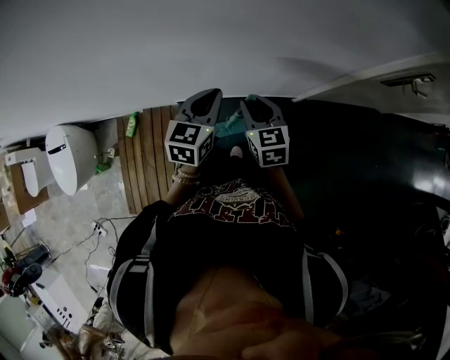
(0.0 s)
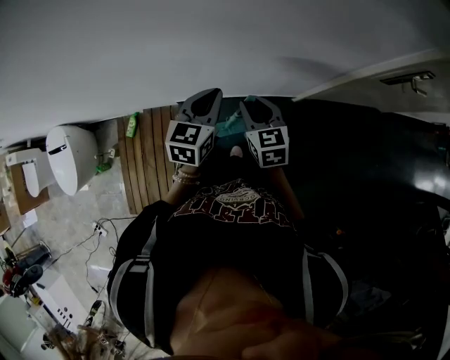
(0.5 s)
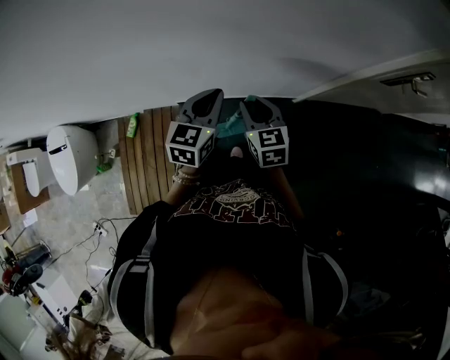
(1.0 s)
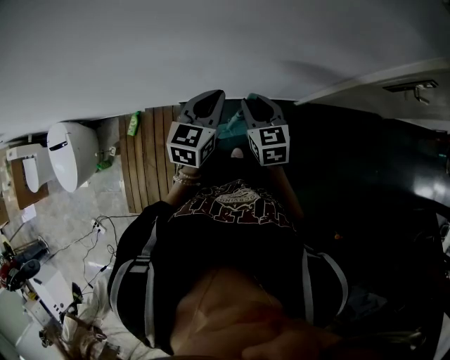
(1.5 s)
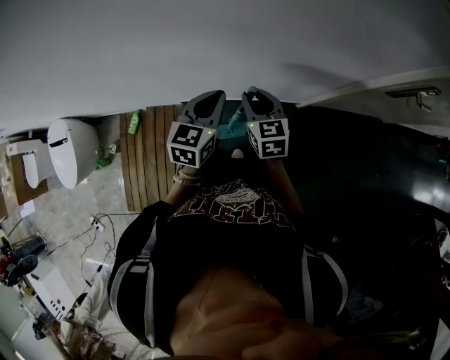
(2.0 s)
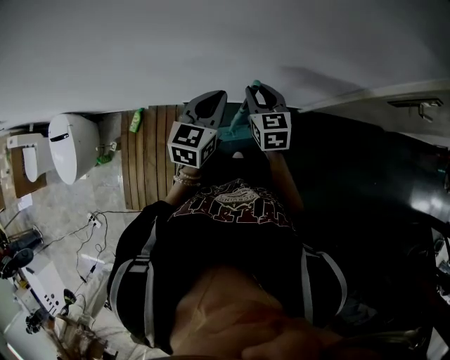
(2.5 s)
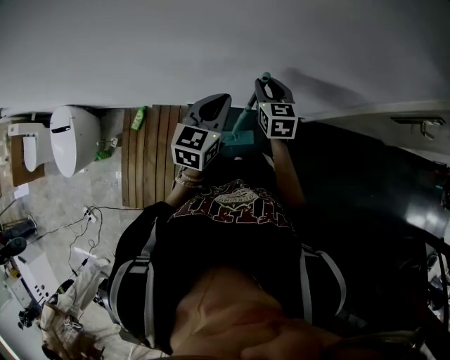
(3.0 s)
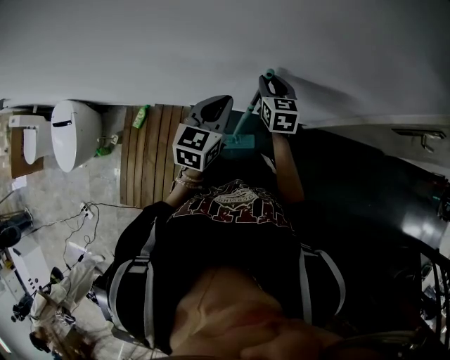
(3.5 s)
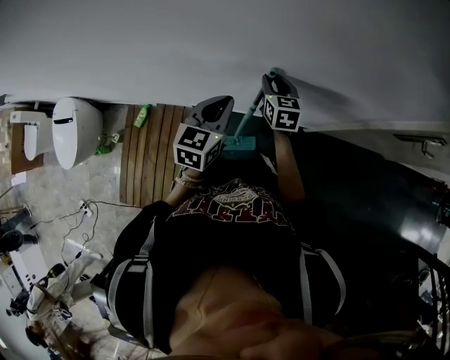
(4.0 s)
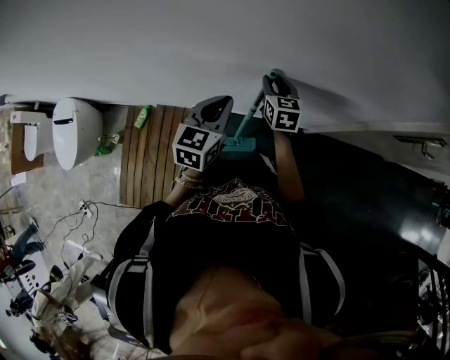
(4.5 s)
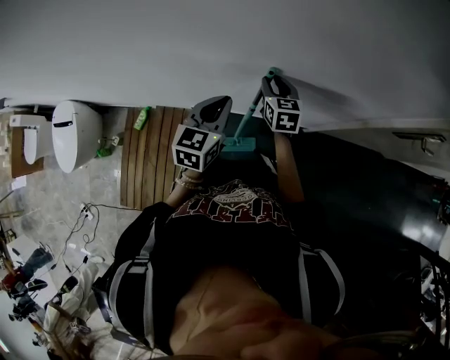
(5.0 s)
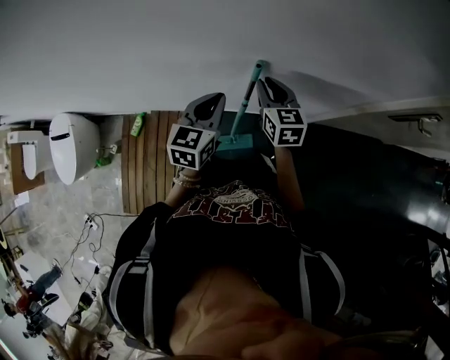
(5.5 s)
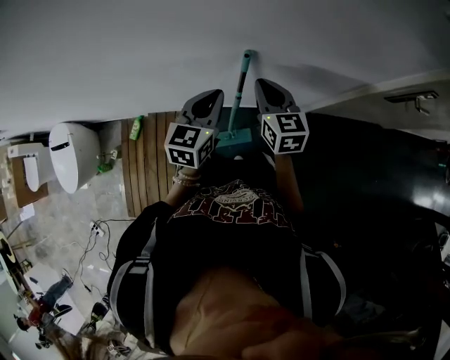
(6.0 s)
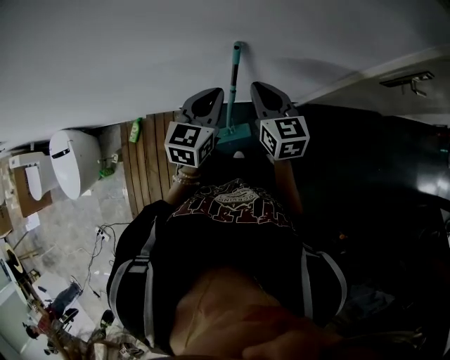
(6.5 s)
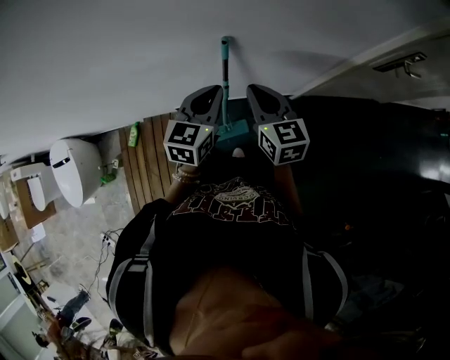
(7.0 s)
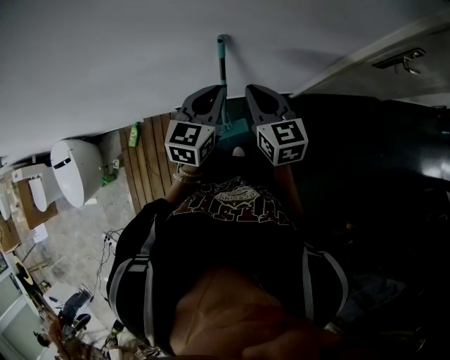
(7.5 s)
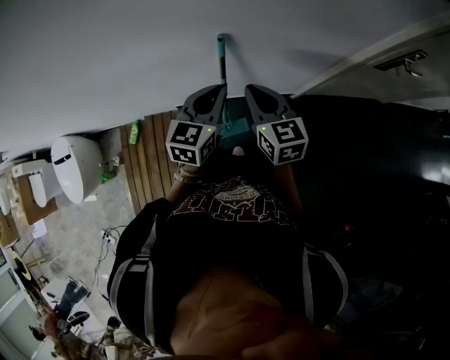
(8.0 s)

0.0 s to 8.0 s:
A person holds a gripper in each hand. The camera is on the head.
0.0 to 2.0 s: There are only small adjustments of the grippers.
2.0 to 4.0 s: The left gripper moves roughly 5 cm; the right gripper is displaced forward by about 15 cm.
4.0 to 6.0 s: The right gripper goes roughly 15 cm backward and upward, and closes.
6.0 to 8.0 s: The left gripper moves to the right, approximately 5 cm; the right gripper goes about 10 cm backward.

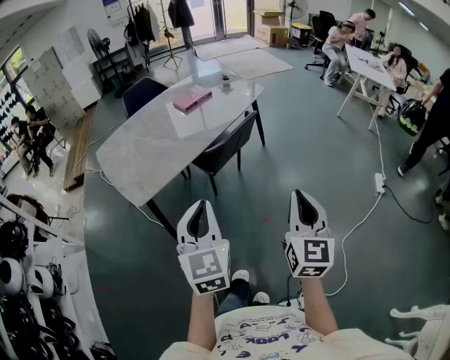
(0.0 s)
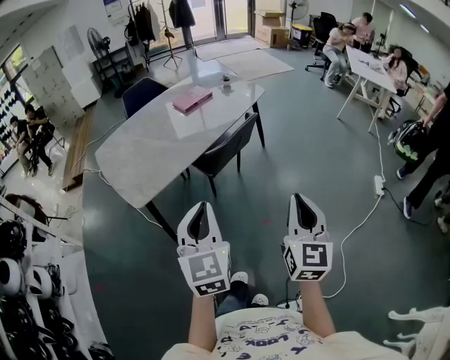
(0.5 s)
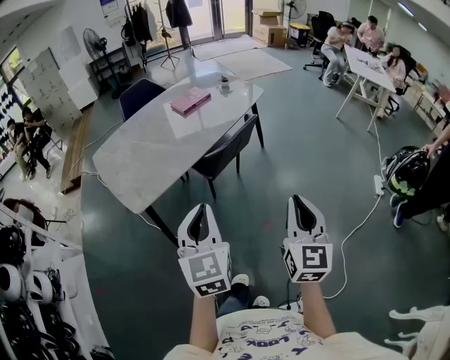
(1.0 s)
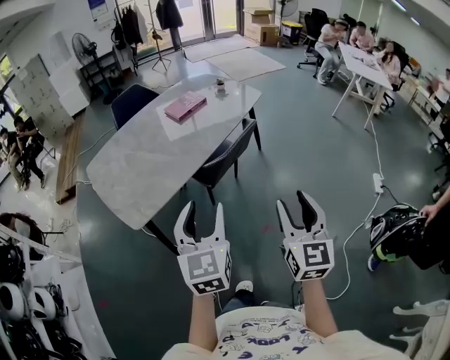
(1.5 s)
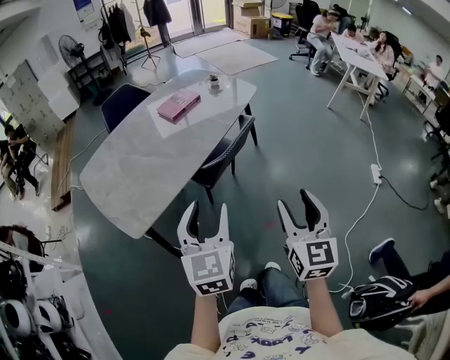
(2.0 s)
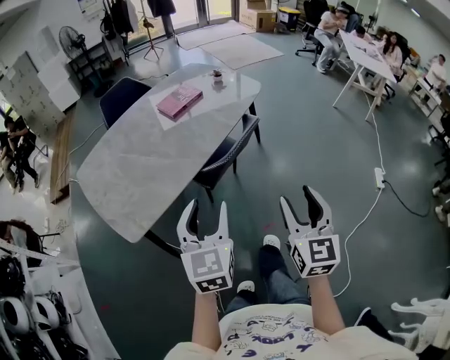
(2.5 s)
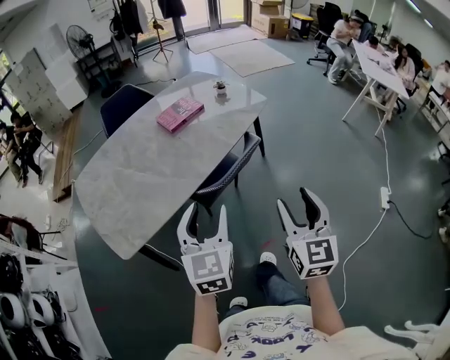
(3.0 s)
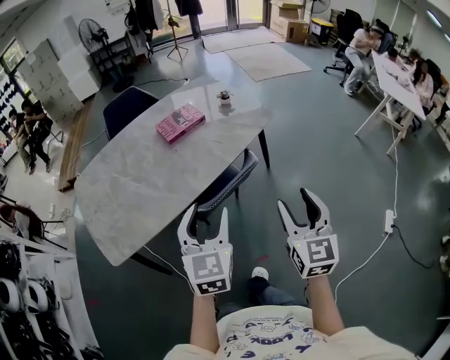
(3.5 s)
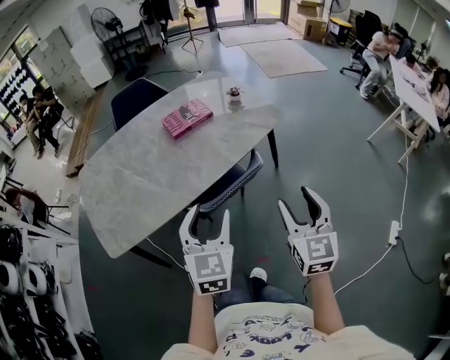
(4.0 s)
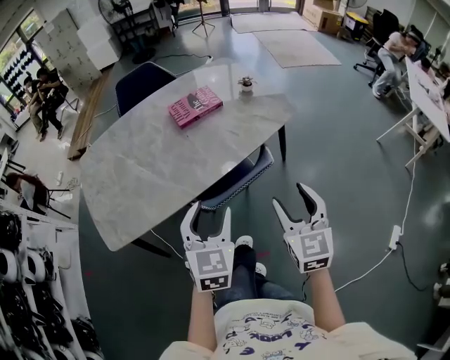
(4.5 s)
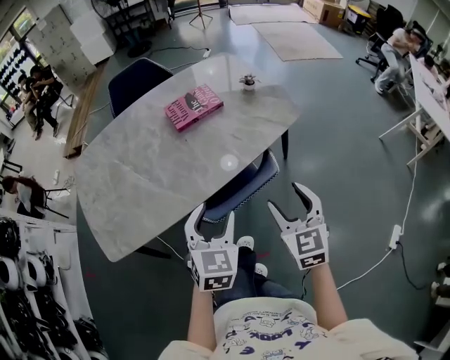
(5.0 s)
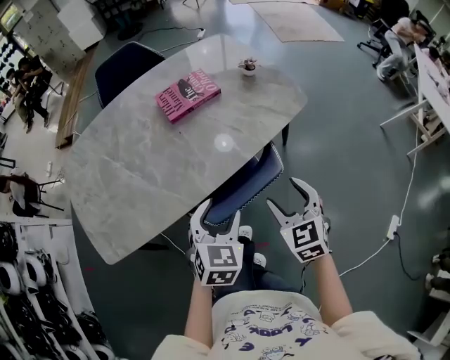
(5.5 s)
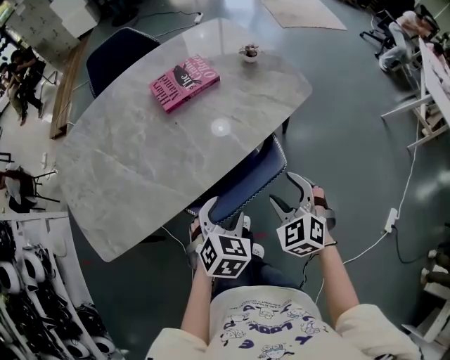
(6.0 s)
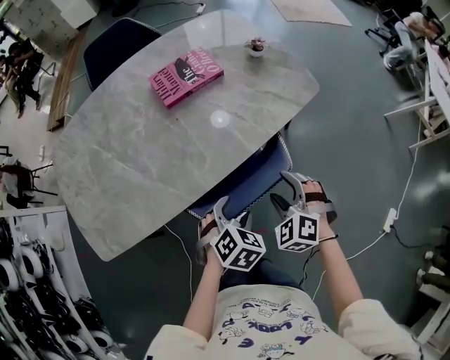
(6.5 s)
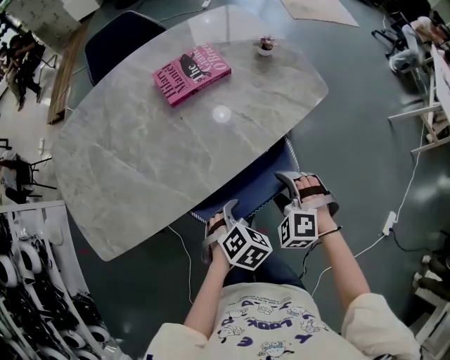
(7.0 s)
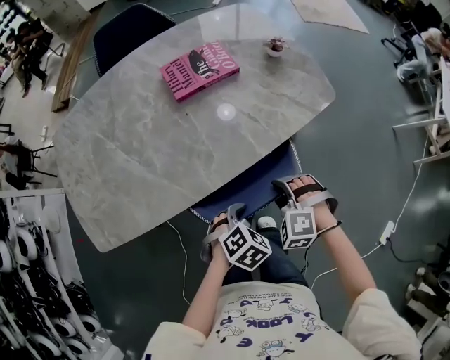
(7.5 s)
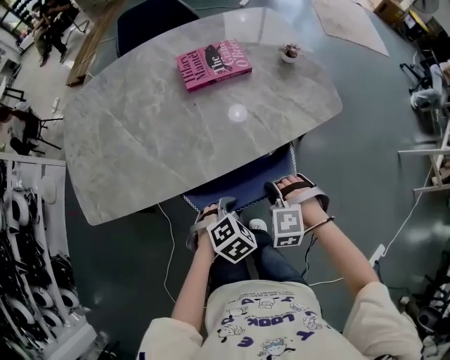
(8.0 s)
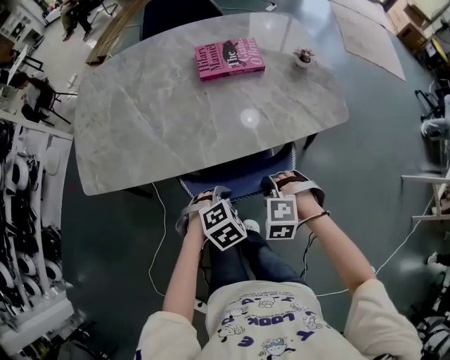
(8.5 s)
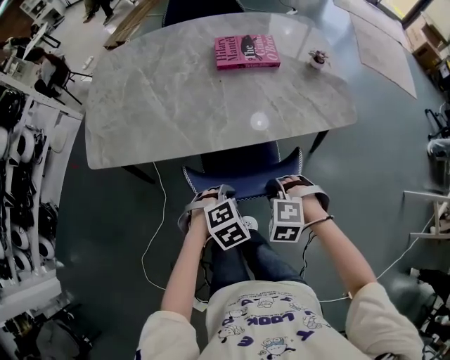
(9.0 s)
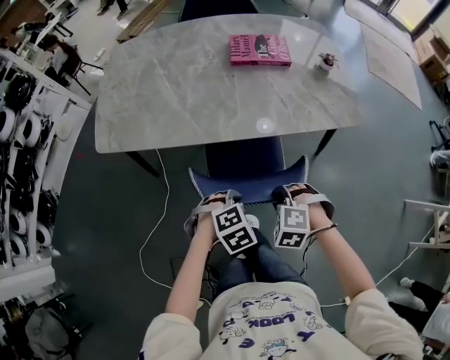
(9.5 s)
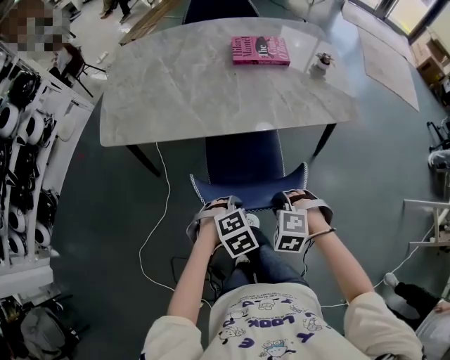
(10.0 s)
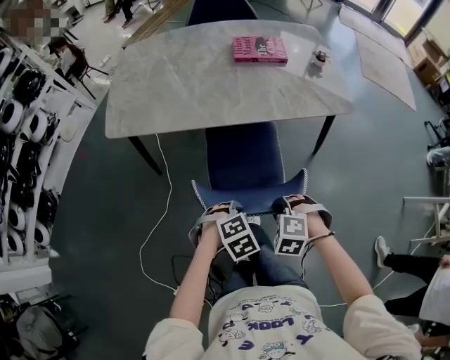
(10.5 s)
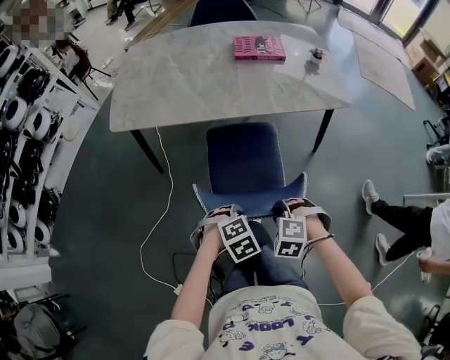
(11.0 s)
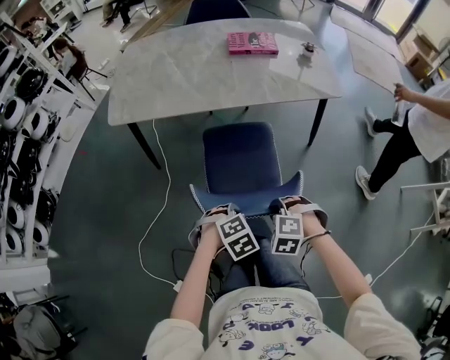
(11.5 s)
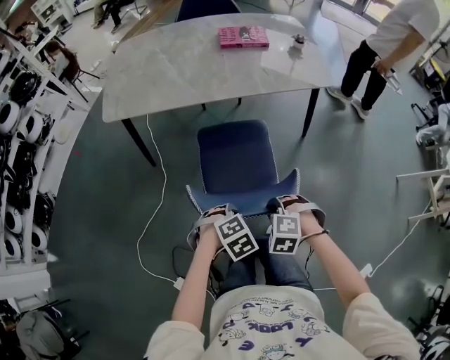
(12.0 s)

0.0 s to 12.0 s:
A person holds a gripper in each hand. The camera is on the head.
0.0 to 2.0 s: The left gripper heads forward, covering some 15 cm, and opens its fingers. Meanwhile the right gripper heads forward and to the left, covering approximately 15 cm, and opens.
2.0 to 4.0 s: The grippers both shift forward and to the right by approximately 35 cm. The right gripper changes its angle by about 20 degrees.
4.0 to 6.0 s: Both grippers travel together downward and forward, some 25 cm. The right gripper angles its fingers downward, by some 30 degrees; the left gripper angles its fingers downward, by roughly 30 degrees.
6.0 to 8.0 s: The two grippers go some 10 cm downward. The right gripper rolls counterclockwise, seen from behind, by some 50 degrees, and closes; the left gripper closes.
8.0 to 10.0 s: The two grippers go approximately 15 cm backward.
10.0 to 12.0 s: Both grippers move backward, approximately 20 cm.

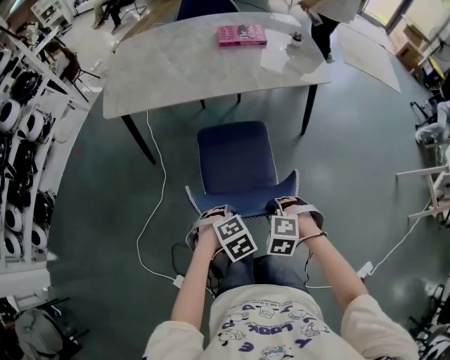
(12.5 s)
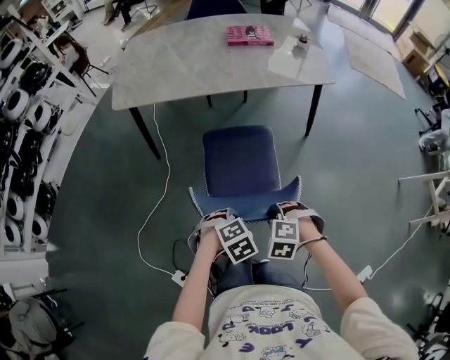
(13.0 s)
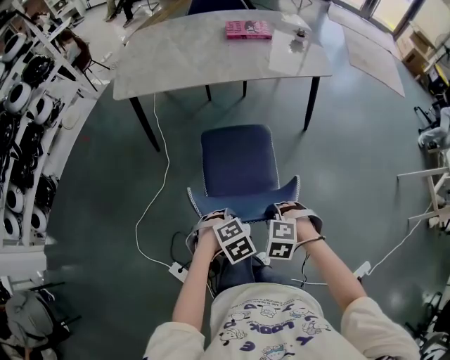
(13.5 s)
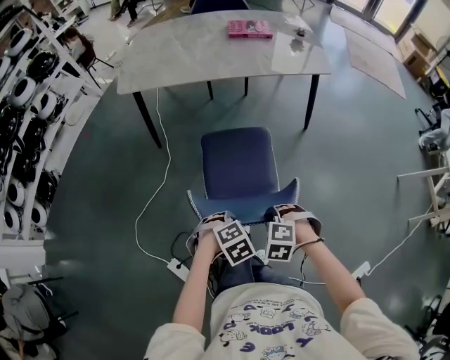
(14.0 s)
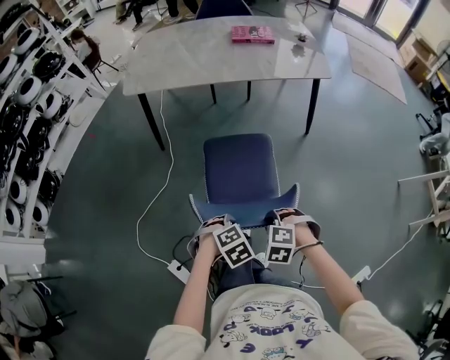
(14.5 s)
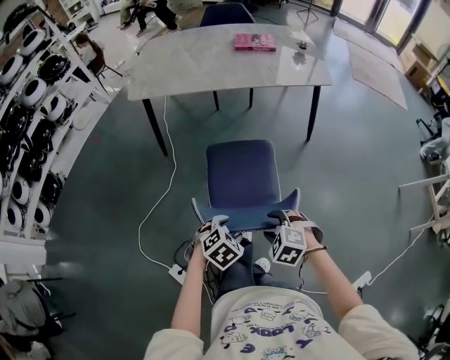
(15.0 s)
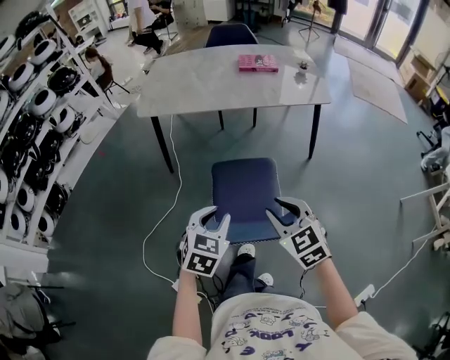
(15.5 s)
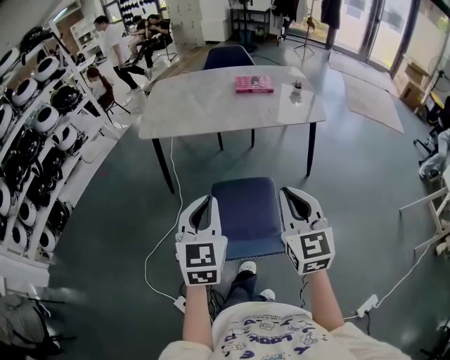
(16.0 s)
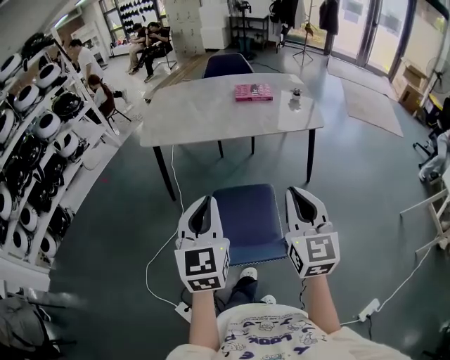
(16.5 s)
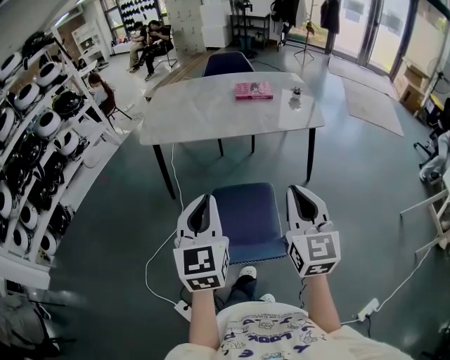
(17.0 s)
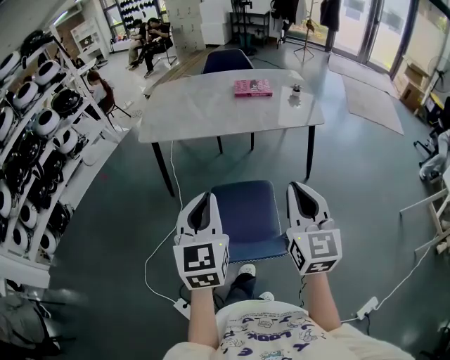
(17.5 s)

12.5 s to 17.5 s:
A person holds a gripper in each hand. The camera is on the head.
12.5 to 15.0 s: The right gripper ends up roughly 15 cm from where it was, and opens its fingers. Meanwhile the left gripper ends up about 15 cm from where it was, changes its angle by roughly 20 degrees, and opens up.
15.0 to 17.5 s: The two grippers go approximately 35 cm upward. The right gripper angles its fingers upward, by approximately 60 degrees, and closes up; the left gripper angles its fingers upward, by about 50 degrees, and closes up.

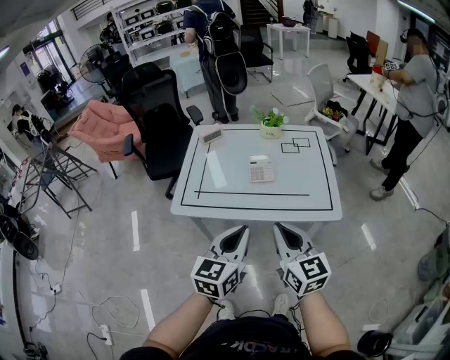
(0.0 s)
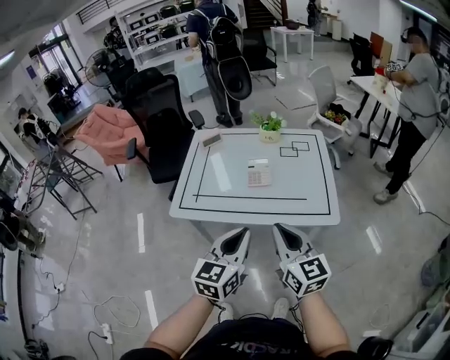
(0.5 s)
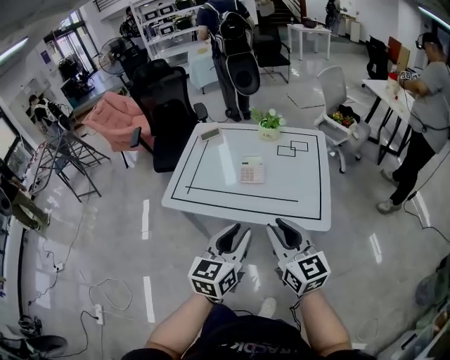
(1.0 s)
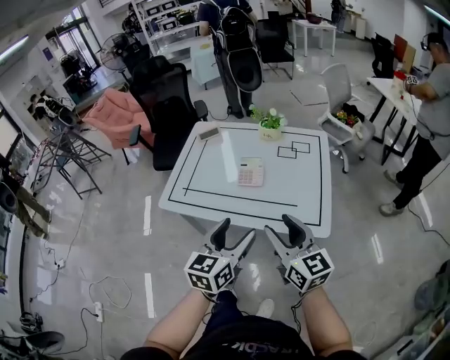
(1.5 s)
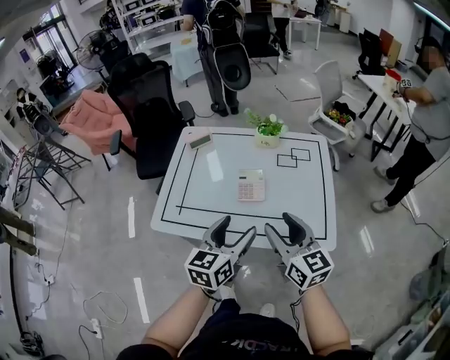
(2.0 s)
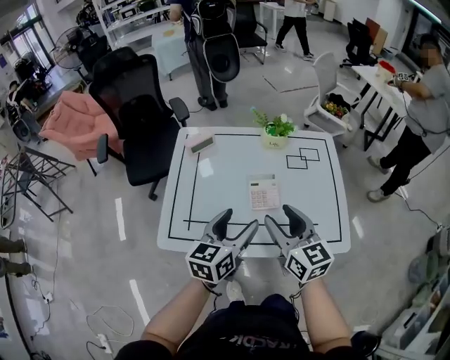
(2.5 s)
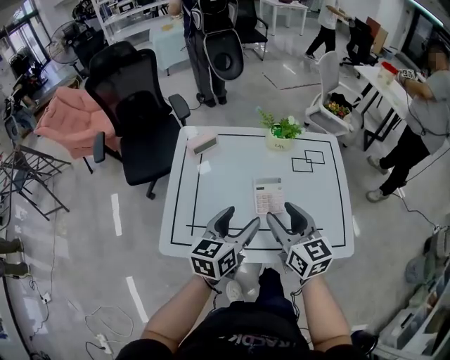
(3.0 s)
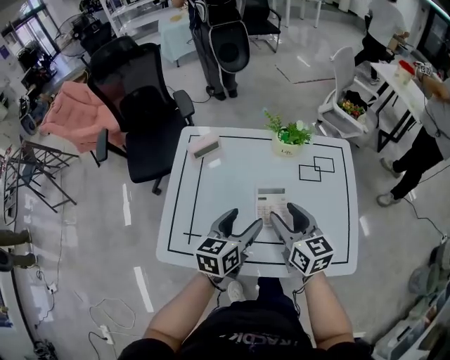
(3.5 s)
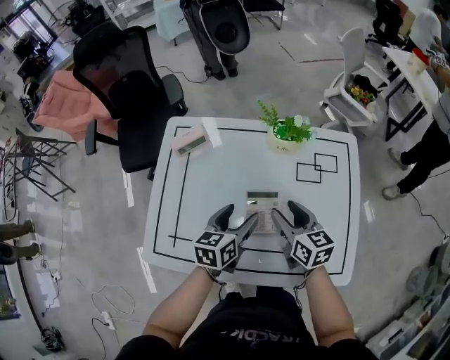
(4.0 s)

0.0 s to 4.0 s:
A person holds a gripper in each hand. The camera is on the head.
0.0 to 2.0 s: The grippers both shift forward and to the right by some 15 cm. The left gripper opens. The right gripper opens its fingers.
2.0 to 4.0 s: Both grippers move forward and downward, roughly 30 cm. The right gripper rotates approximately 20 degrees.
